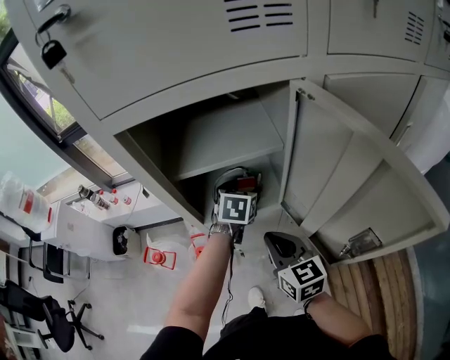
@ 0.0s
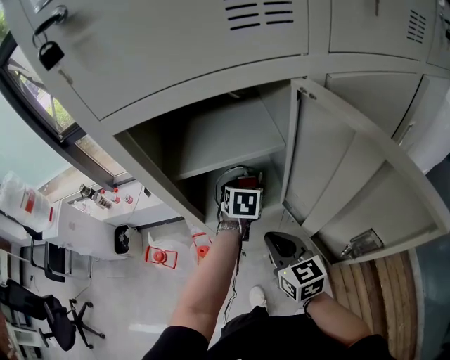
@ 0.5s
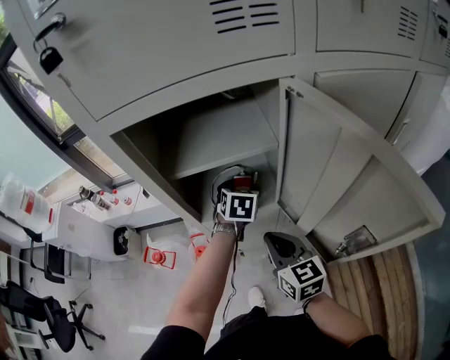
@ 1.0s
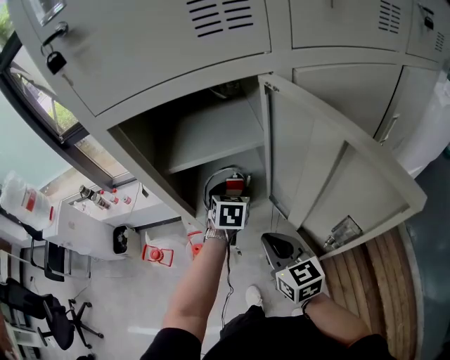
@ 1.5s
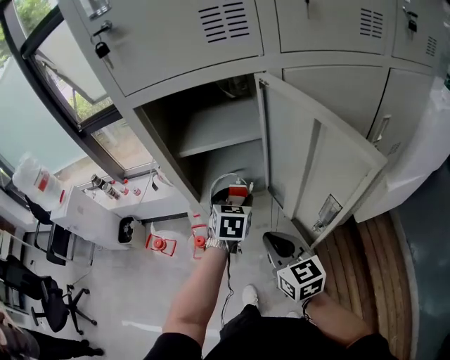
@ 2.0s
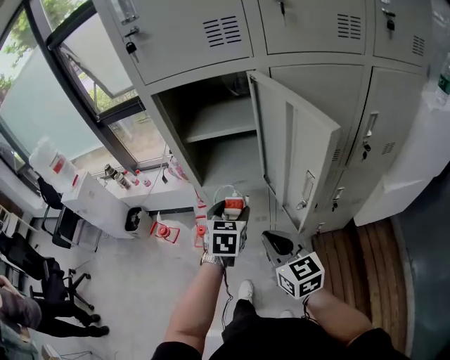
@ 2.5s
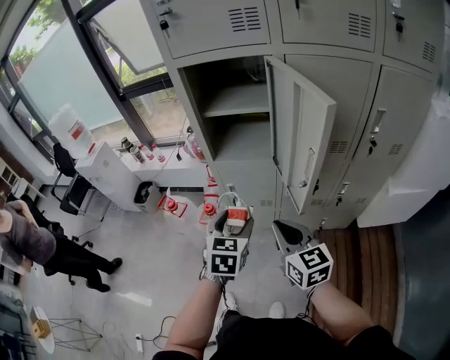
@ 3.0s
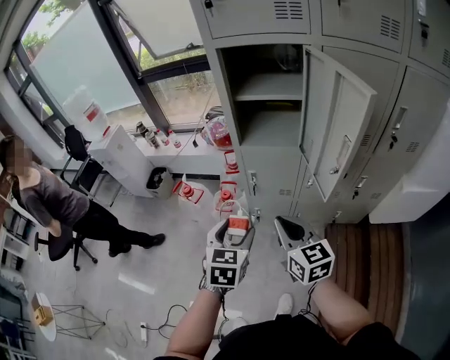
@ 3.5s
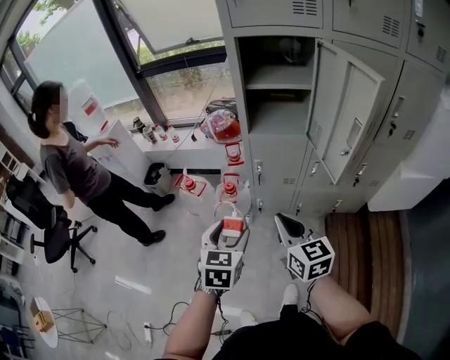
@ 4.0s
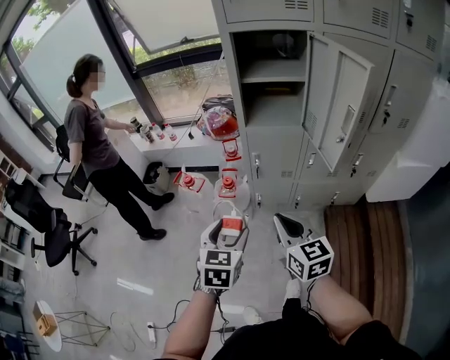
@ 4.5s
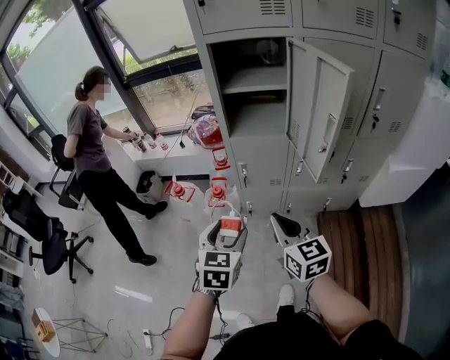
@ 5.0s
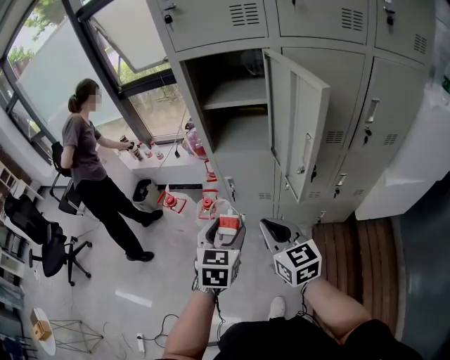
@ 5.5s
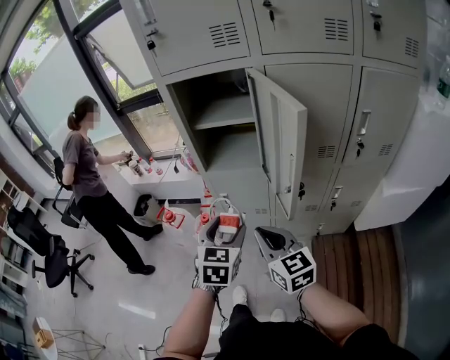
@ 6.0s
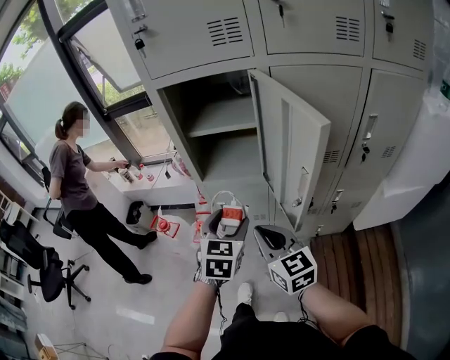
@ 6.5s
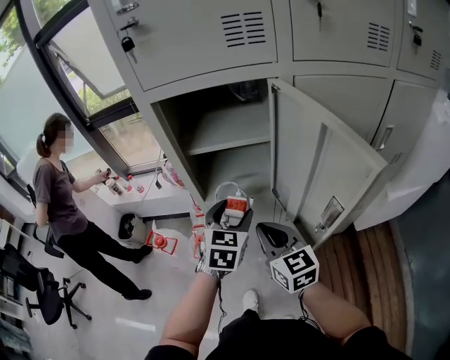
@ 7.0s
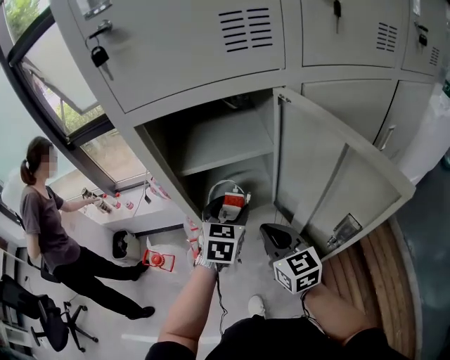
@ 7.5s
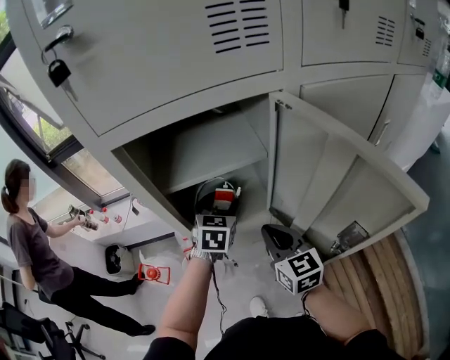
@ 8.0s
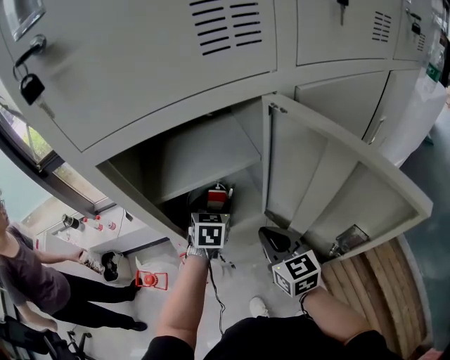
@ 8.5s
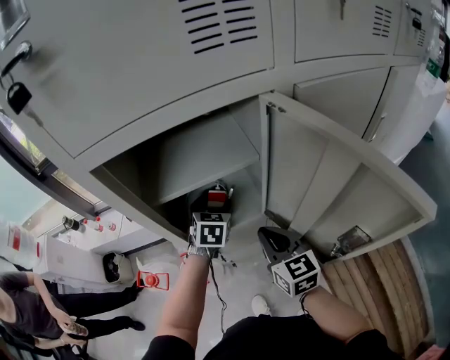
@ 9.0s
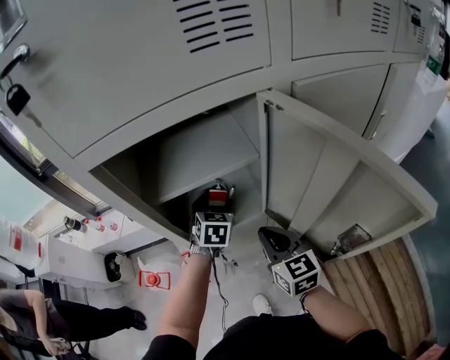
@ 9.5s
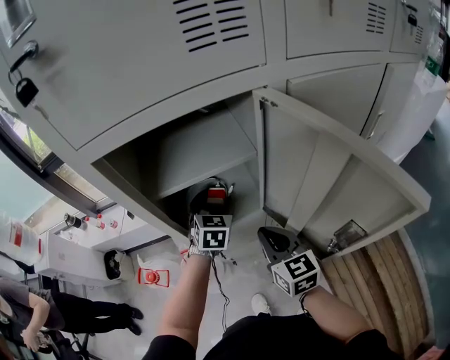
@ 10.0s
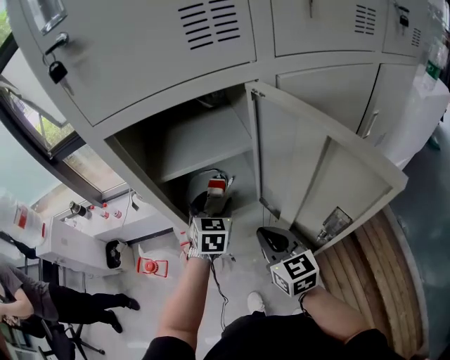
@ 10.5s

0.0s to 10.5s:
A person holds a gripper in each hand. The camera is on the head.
0.0s to 2.0s: The two grippers go some 10 cm backward.
2.0s to 4.0s: The right gripper heads backward and to the left, covering about 20 cm. Meanwhile the left gripper moves backward and to the left, about 40 cm.
4.0s to 6.5s: The left gripper heads to the right and forward, covering approximately 25 cm. Meanwhile the right gripper travels to the right and forward by some 15 cm.
6.5s to 8.5s: The left gripper travels forward by roughly 30 cm. Meanwhile the right gripper heads forward, covering about 20 cm, and changes its angle by approximately 30 degrees.
8.5s to 10.5s: The left gripper goes some 5 cm backward.

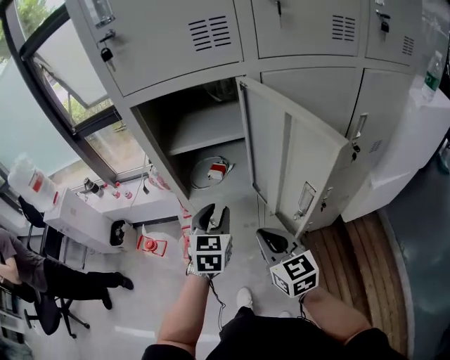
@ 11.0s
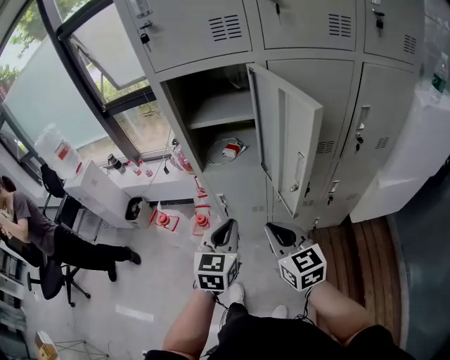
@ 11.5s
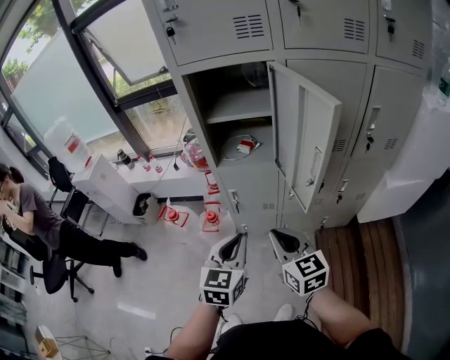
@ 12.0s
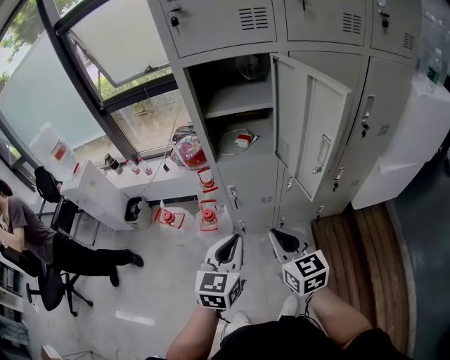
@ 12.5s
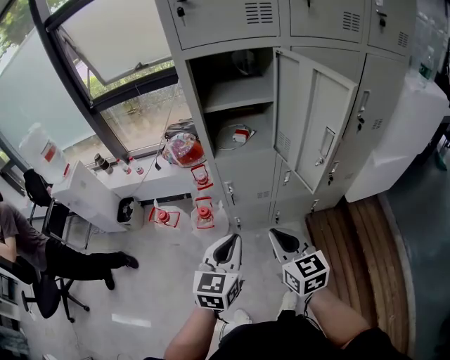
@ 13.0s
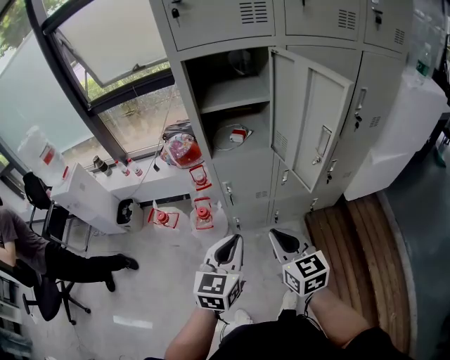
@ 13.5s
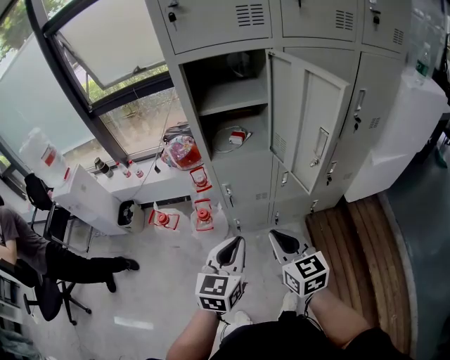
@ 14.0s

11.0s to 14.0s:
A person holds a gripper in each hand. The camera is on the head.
11.0s to 12.5s: The left gripper heads backward, covering roughly 20 cm, and closes up; the right gripper moves backward and to the left, approximately 15 cm.
12.5s to 14.0s: There are only small adjustments of the grippers.

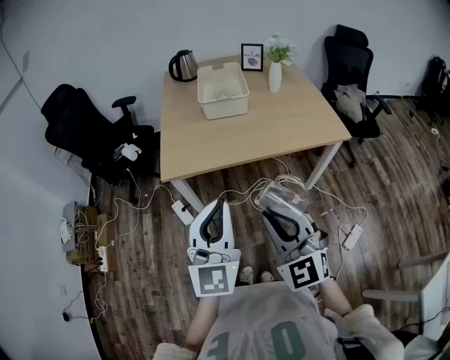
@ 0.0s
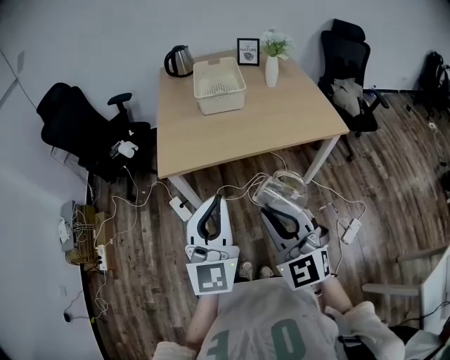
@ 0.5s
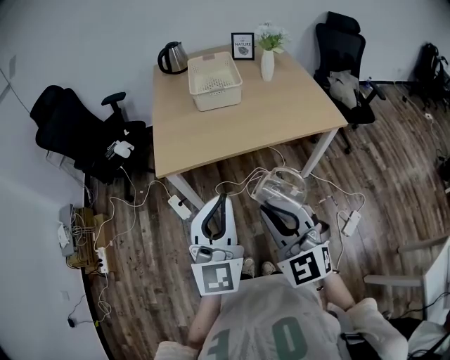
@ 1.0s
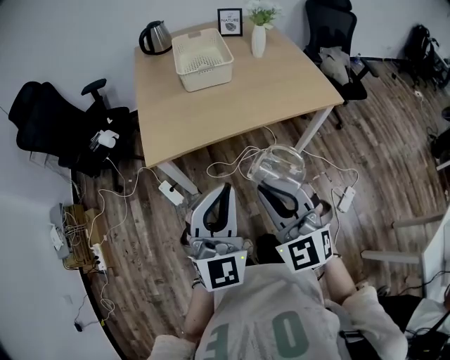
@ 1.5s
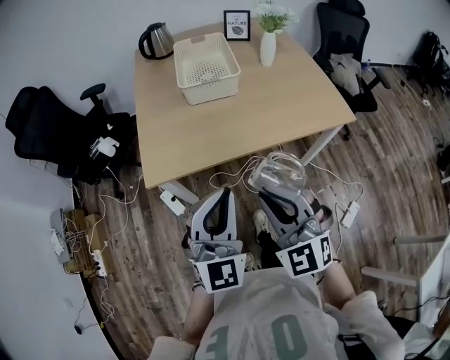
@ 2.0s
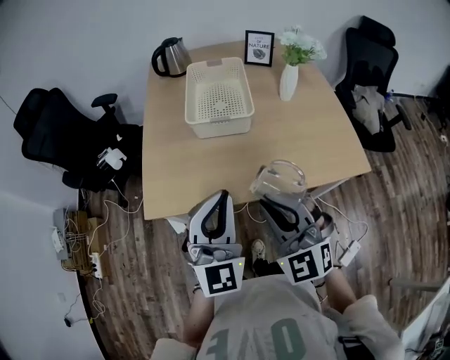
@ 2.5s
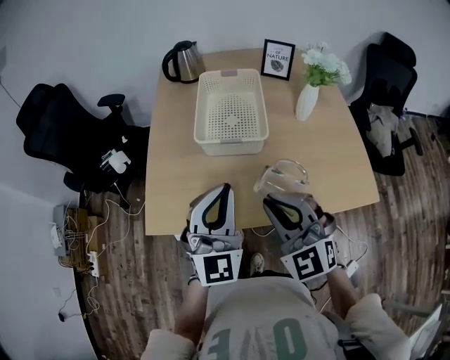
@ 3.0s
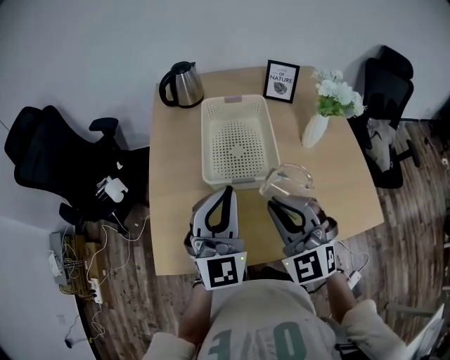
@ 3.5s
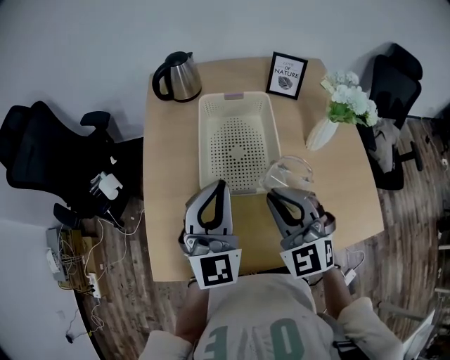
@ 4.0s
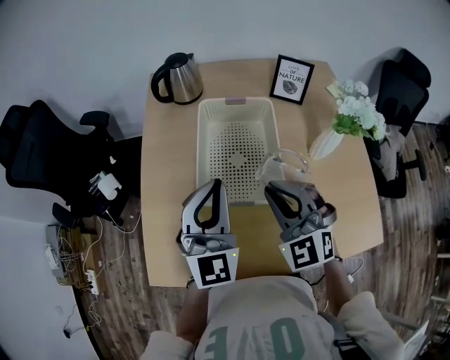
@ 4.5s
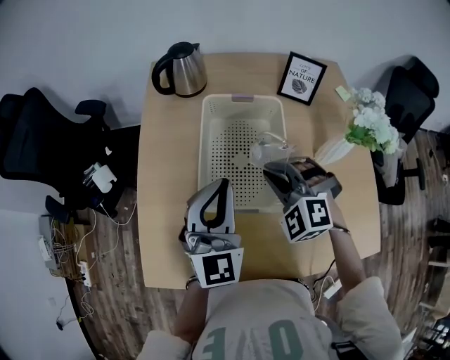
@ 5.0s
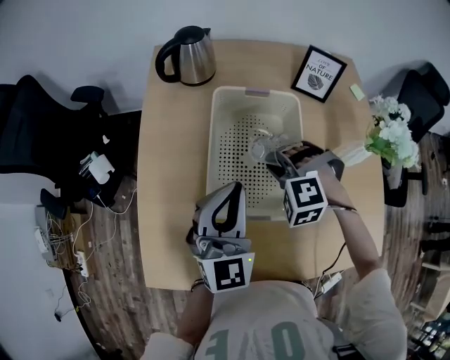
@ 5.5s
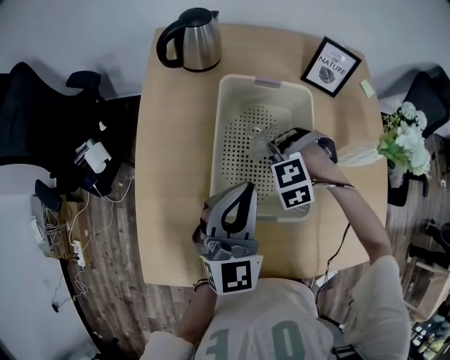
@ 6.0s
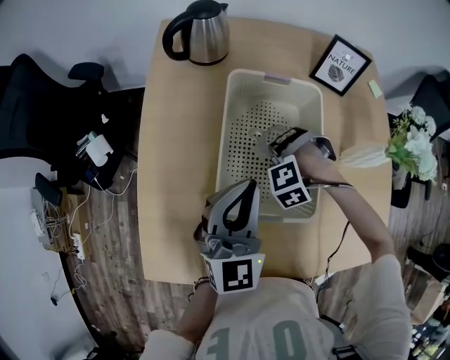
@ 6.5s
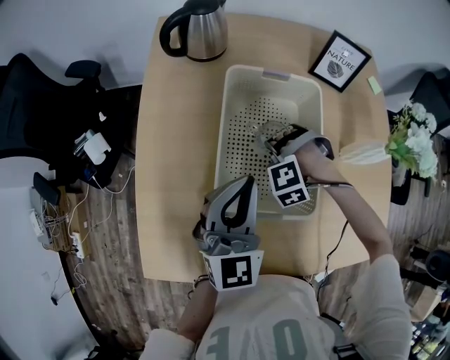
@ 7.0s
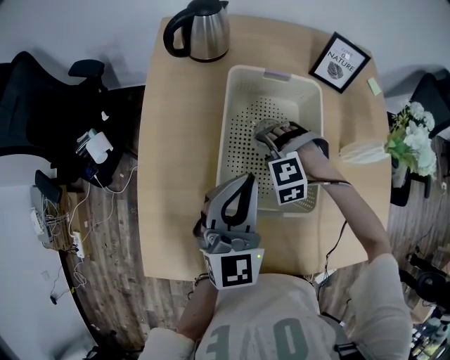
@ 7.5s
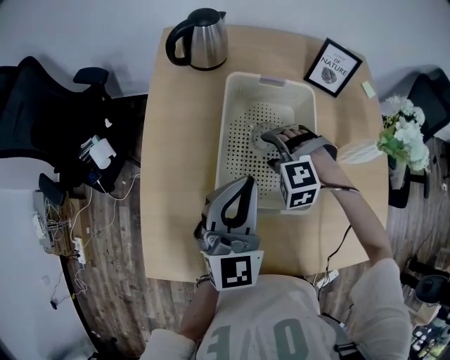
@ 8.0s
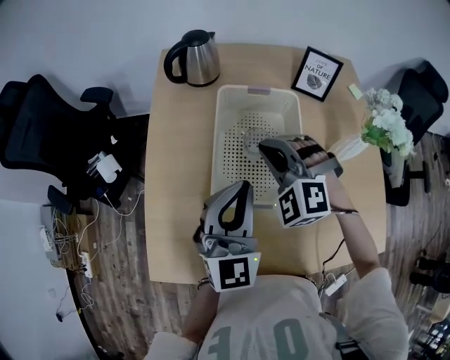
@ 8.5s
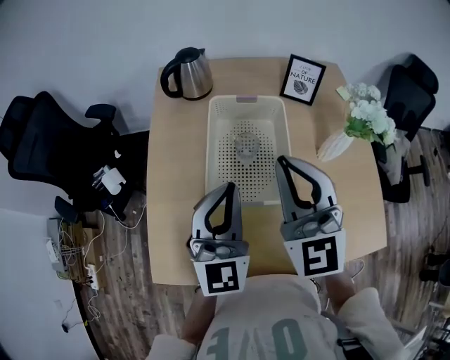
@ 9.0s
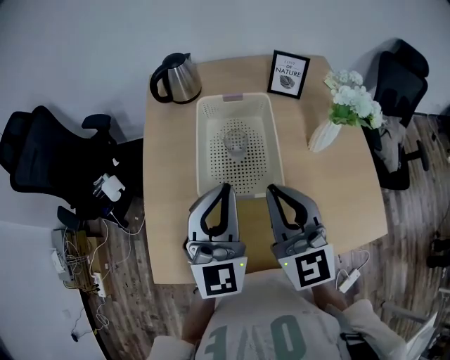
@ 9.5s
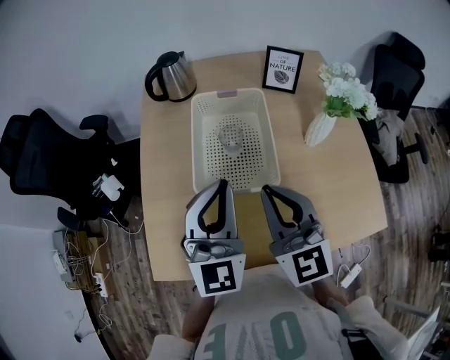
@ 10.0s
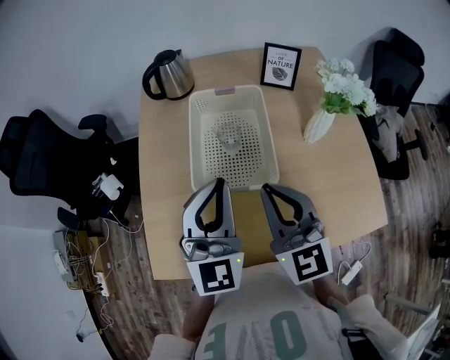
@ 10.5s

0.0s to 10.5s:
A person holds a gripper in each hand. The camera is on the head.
0.0s to 2.0s: Both grippers travel together forward, approximately 15 cm. The left gripper turns by roughly 20 degrees.
2.0s to 4.0s: The pair of grippers is taken forward, roughly 40 cm.
4.0s to 6.5s: The right gripper goes approximately 25 cm downward, and tilts its fingers roughly 50 degrees downward; the left gripper moves some 15 cm.
6.5s to 8.5s: The left gripper shifts approximately 5 cm upward; the right gripper travels upward by roughly 20 cm, points its fingers approximately 40 degrees further upward, and opens and closes again.
8.5s to 10.5s: The right gripper heads backward and upward, covering roughly 20 cm, and rolls clockwise, seen from behind, by some 60 degrees, while the left gripper goes about 10 cm backward and upward.

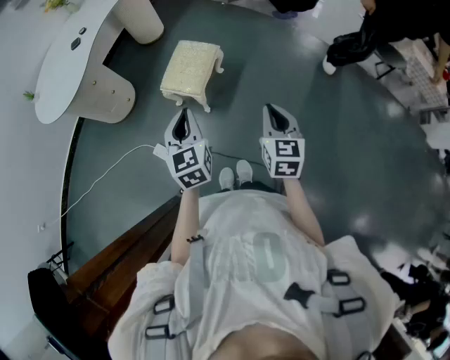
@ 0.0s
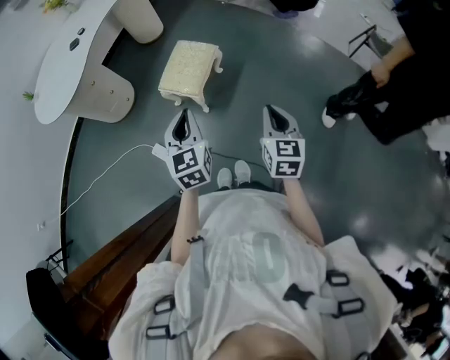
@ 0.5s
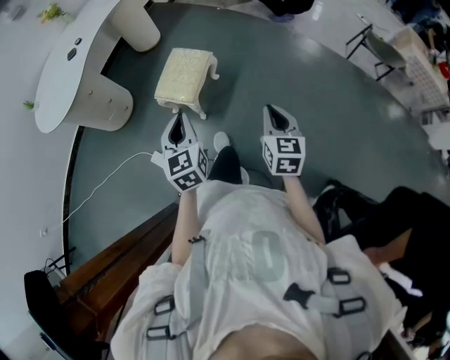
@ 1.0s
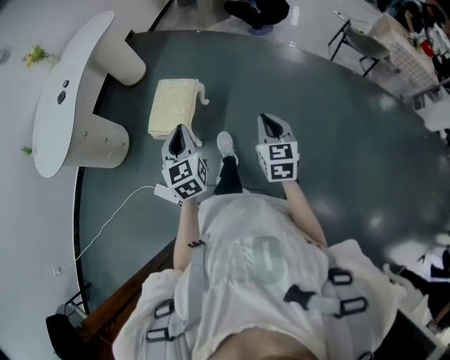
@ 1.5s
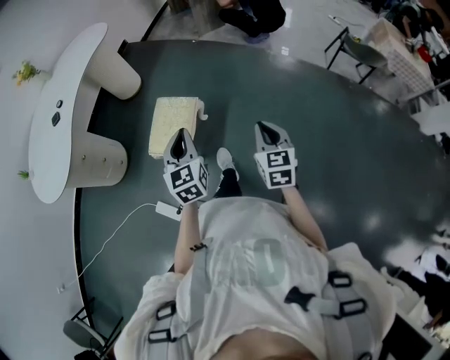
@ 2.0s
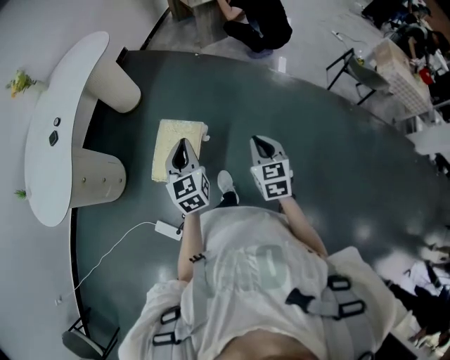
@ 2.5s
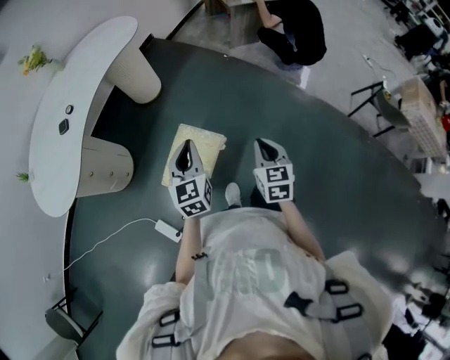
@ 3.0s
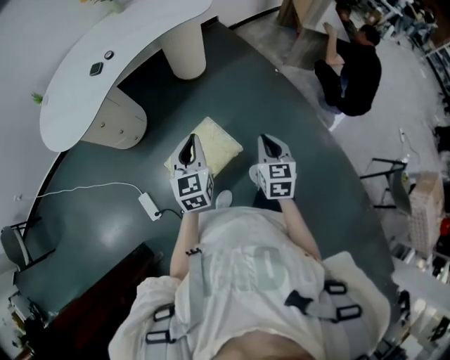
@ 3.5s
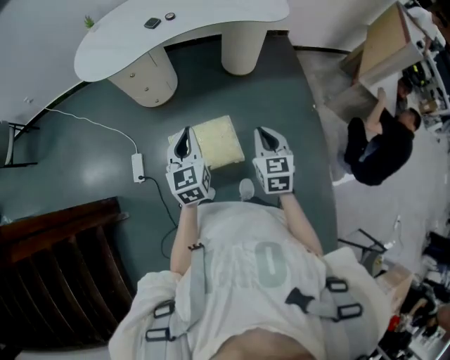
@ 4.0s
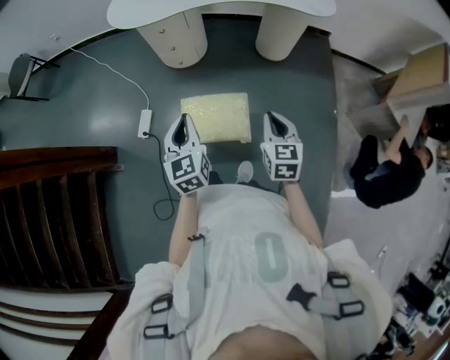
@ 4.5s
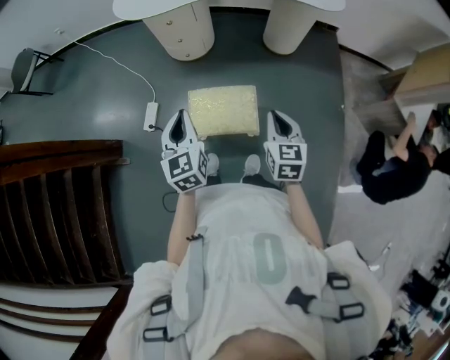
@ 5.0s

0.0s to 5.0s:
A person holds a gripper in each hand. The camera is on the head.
0.0s to 2.5s: The grippers both shift forward by about 30 cm.
2.5s to 5.0s: The right gripper shifts by some 30 cm, and swivels about 70 degrees, while the left gripper turns by approximately 80 degrees.
